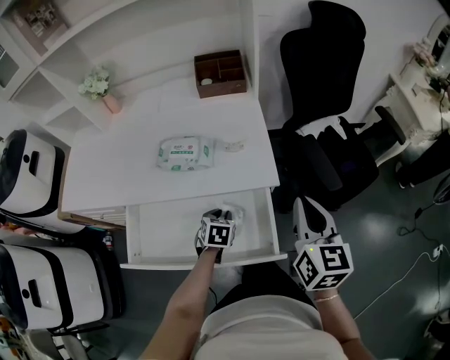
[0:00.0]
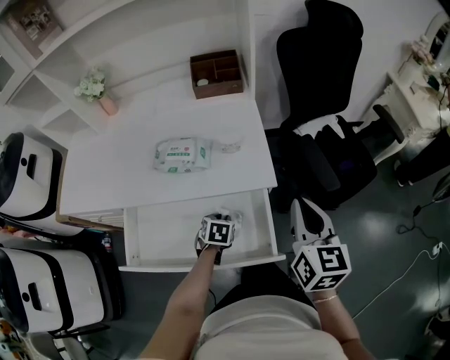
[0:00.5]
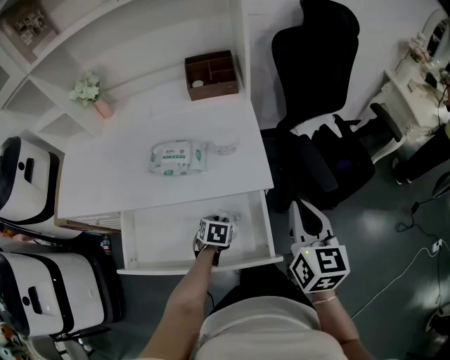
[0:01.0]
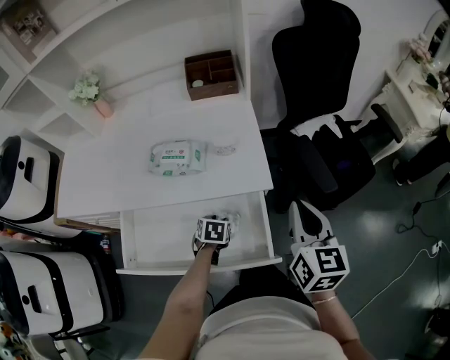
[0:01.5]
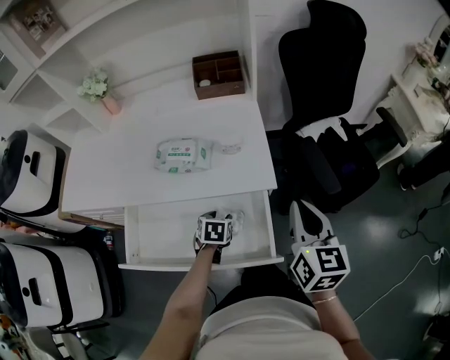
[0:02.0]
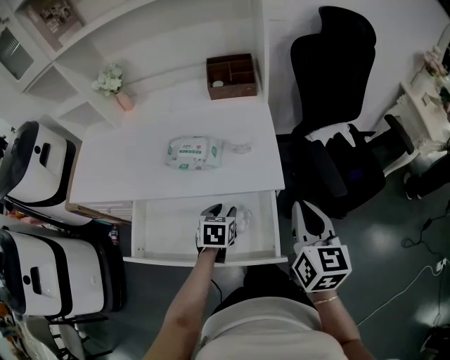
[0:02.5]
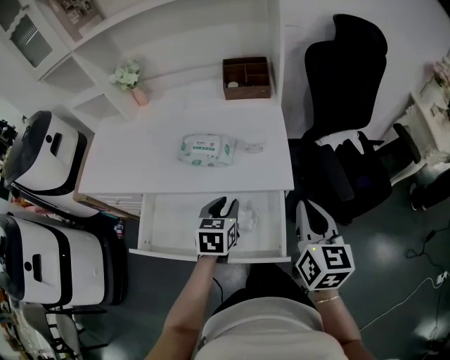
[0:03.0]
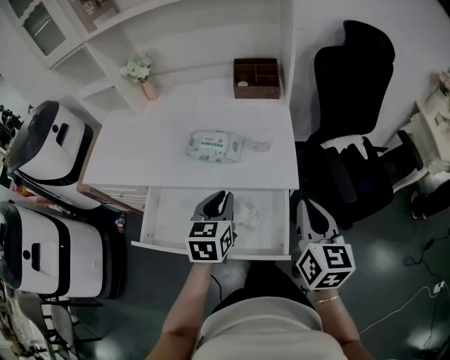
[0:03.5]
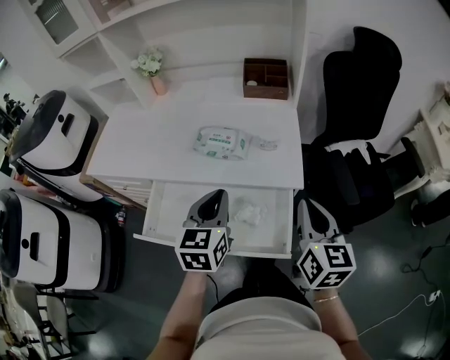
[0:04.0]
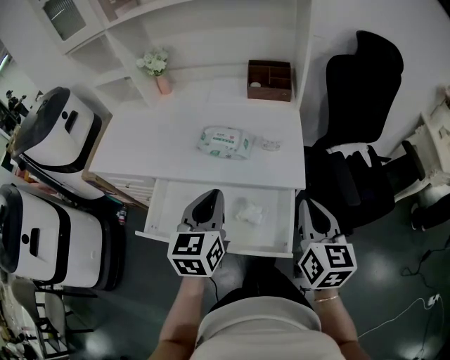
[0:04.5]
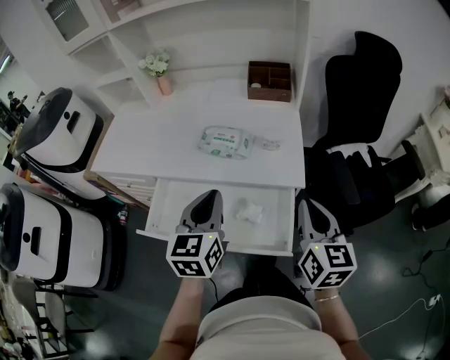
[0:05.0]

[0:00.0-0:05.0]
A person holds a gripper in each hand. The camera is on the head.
0:00.0 to 0:02.5: The left gripper shifts about 5 cm upward.
0:02.5 to 0:05.0: The right gripper changes place by some 5 cm, while the left gripper goes approximately 20 cm upward, tilts its fingers roughly 40 degrees upward, and closes.

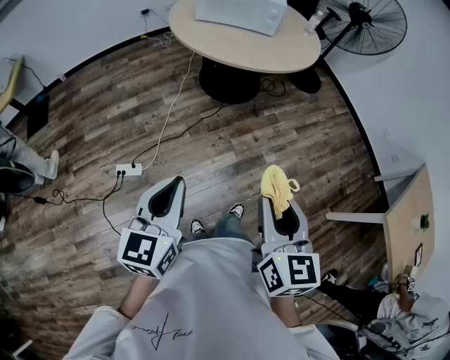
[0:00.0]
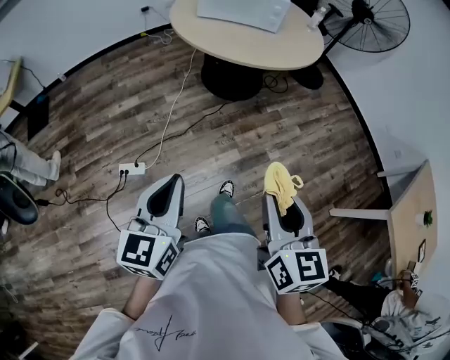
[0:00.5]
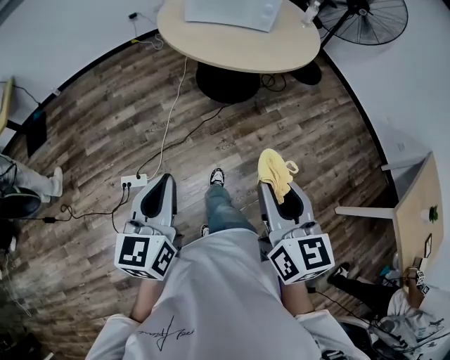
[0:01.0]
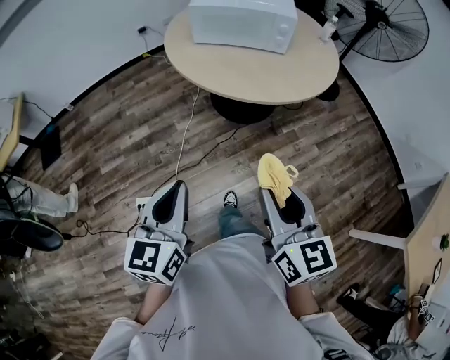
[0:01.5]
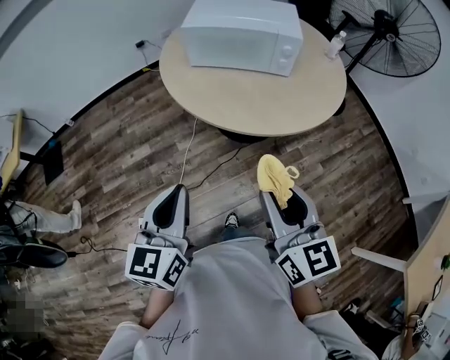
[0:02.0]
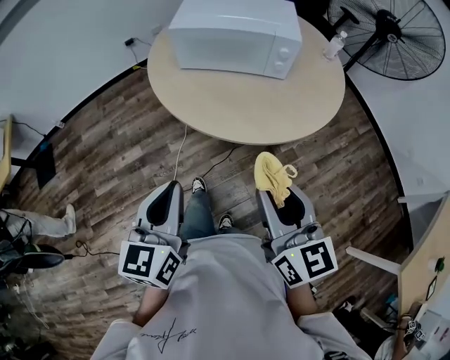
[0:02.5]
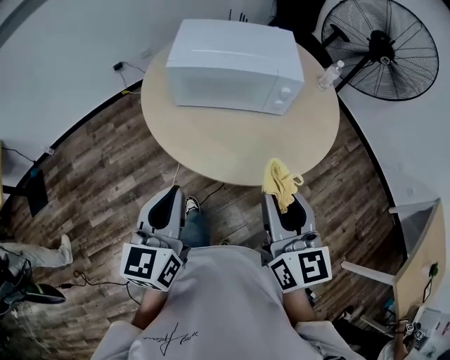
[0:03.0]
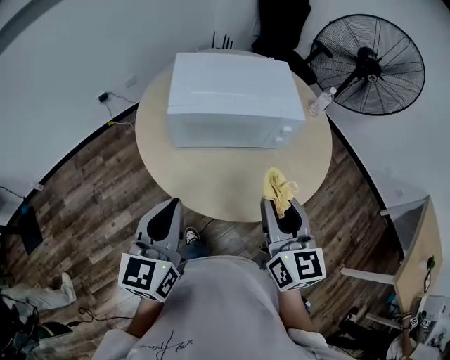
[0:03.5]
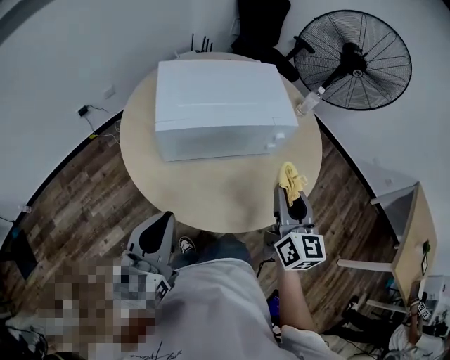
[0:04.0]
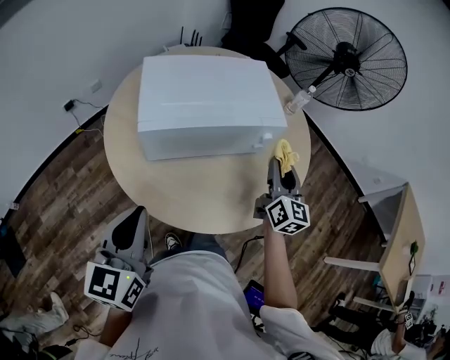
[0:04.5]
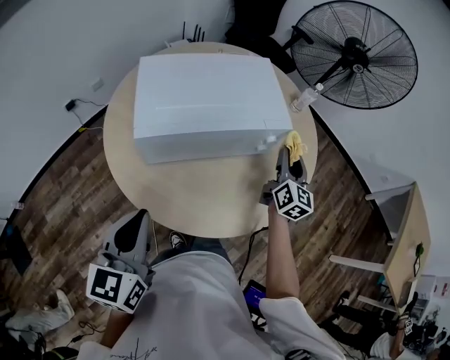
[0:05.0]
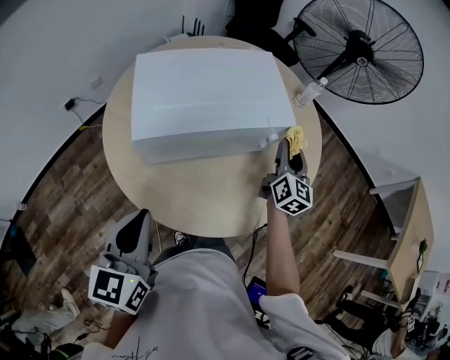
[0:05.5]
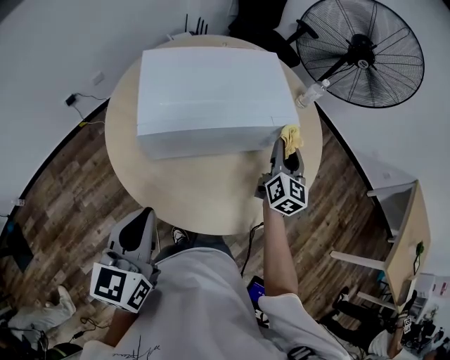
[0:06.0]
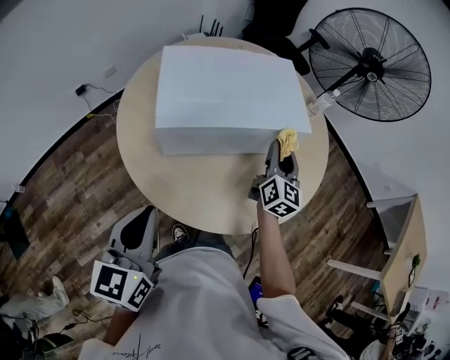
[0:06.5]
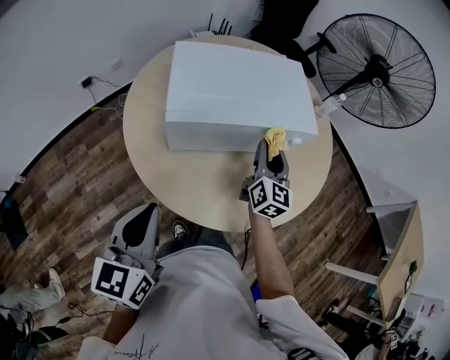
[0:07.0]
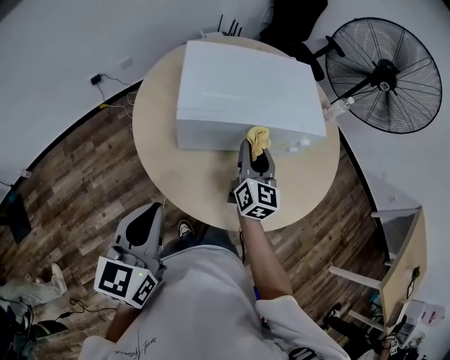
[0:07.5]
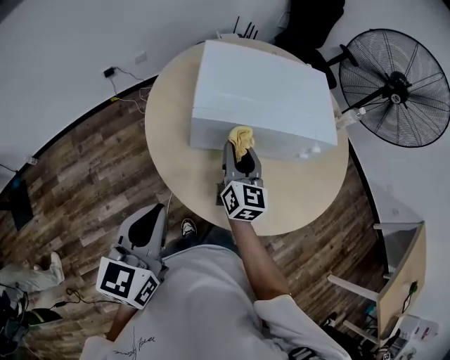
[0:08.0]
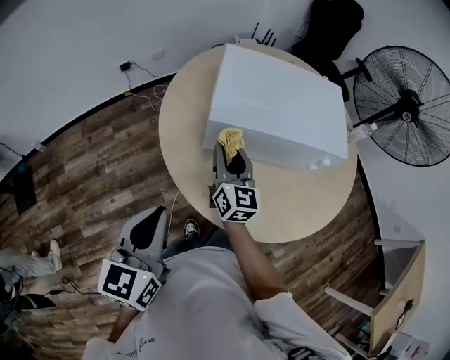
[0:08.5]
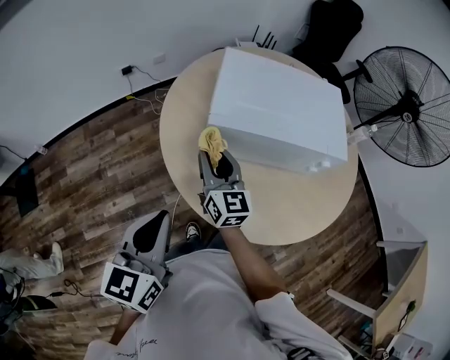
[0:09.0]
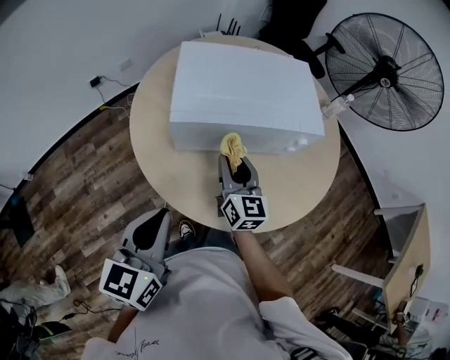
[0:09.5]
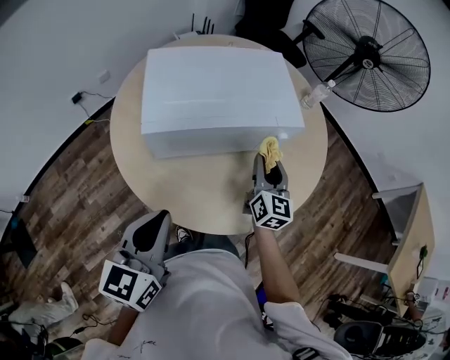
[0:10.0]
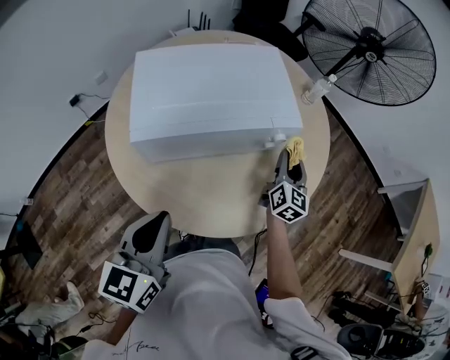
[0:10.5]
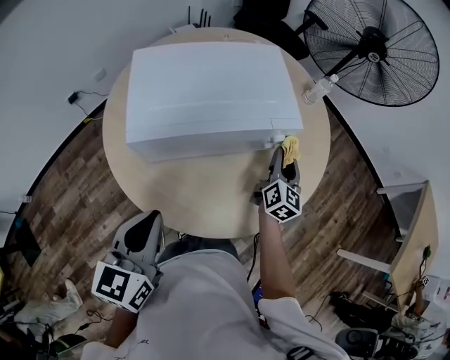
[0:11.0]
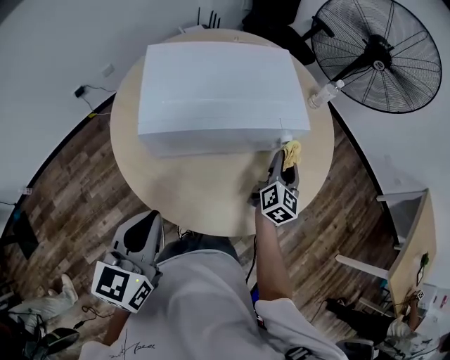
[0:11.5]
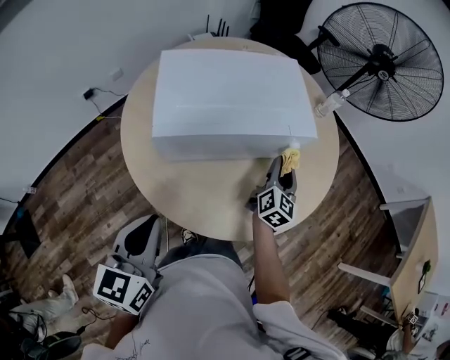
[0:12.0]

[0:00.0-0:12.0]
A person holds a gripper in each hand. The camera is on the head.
0:00.0 to 0:02.0: The grippers both shift forward by some 40 cm.
0:02.0 to 0:04.0: The left gripper ends up about 40 cm from where it was, and swivels approximately 20 degrees, while the right gripper shifts by about 35 cm, and changes its angle by roughly 30 degrees.
0:04.0 to 0:06.0: The left gripper moves forward, roughly 5 cm. Meanwhile the right gripper shifts some 20 cm forward and downward.
0:06.0 to 0:08.0: The left gripper goes approximately 10 cm backward and to the left. Meanwhile the right gripper is displaced to the left by some 25 cm, and swivels approximately 30 degrees.
0:08.0 to 0:10.0: The right gripper ends up approximately 20 cm from where it was; the left gripper shifts by roughly 10 cm.

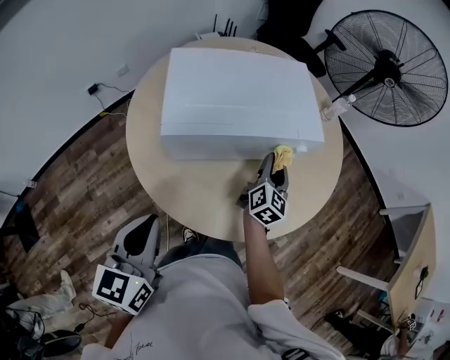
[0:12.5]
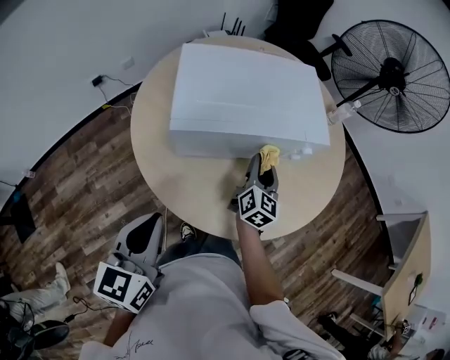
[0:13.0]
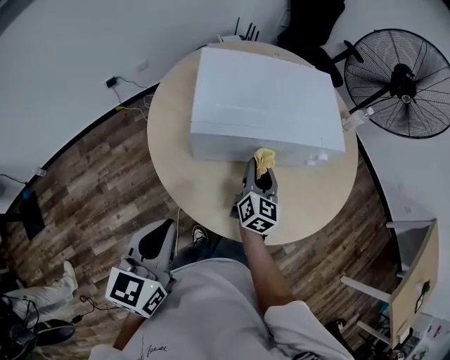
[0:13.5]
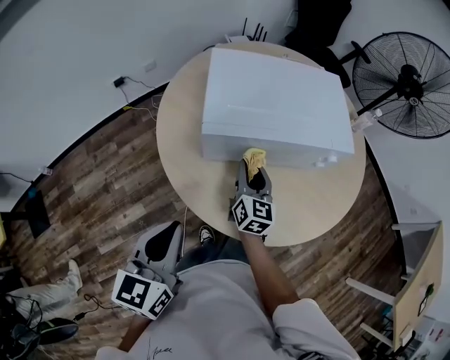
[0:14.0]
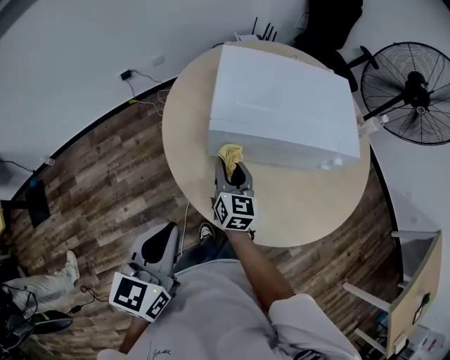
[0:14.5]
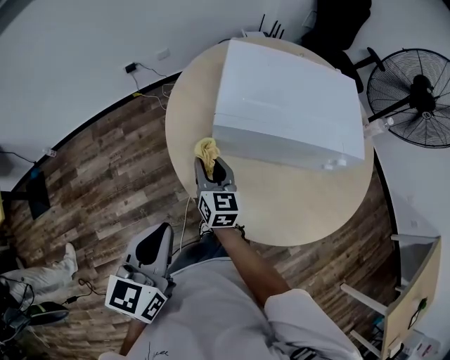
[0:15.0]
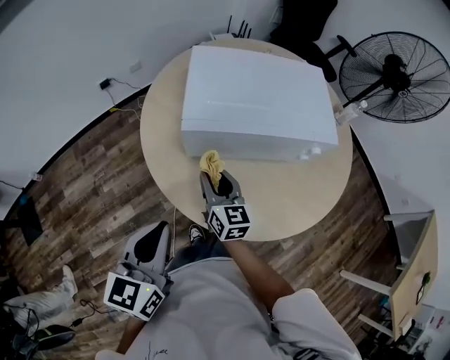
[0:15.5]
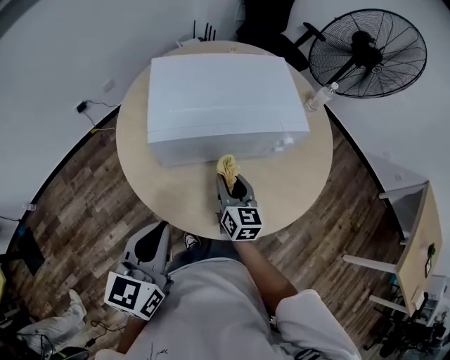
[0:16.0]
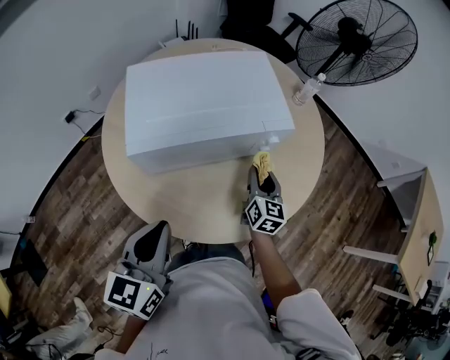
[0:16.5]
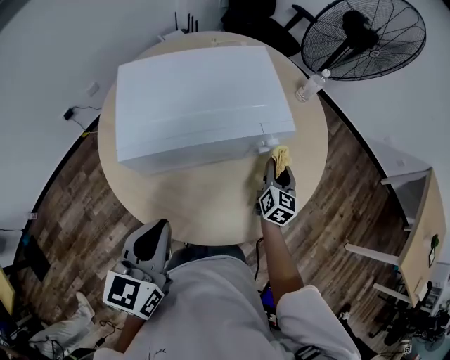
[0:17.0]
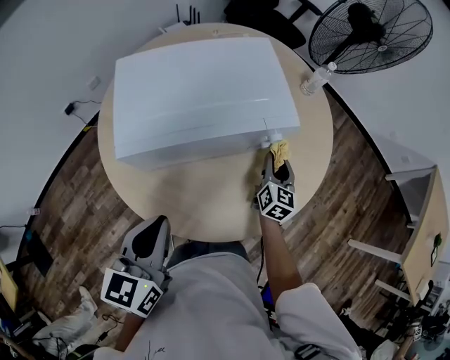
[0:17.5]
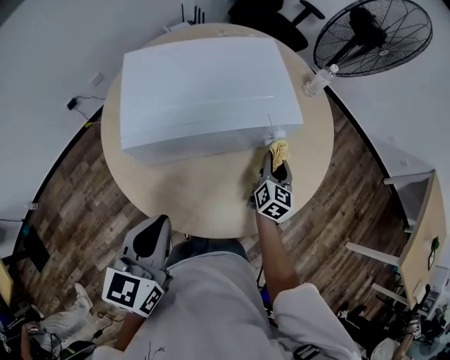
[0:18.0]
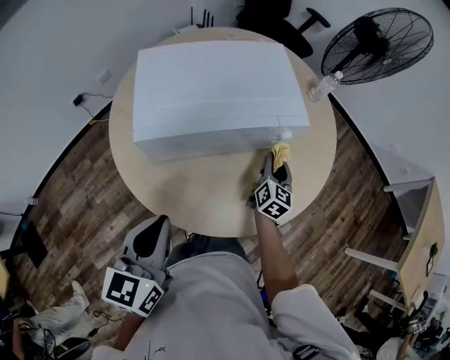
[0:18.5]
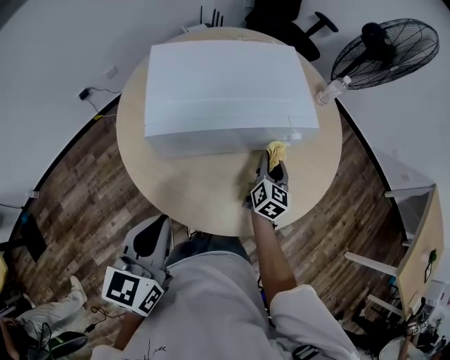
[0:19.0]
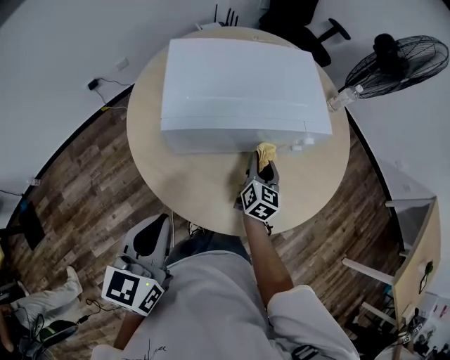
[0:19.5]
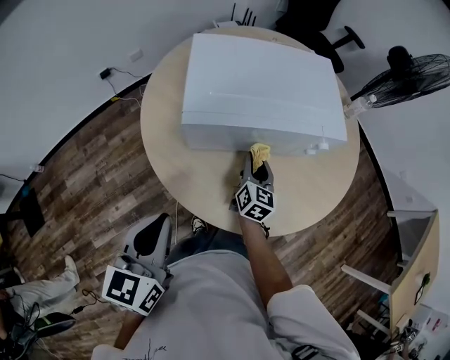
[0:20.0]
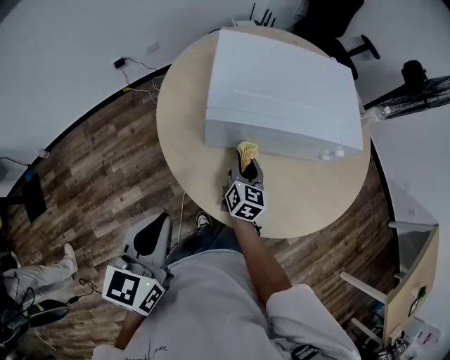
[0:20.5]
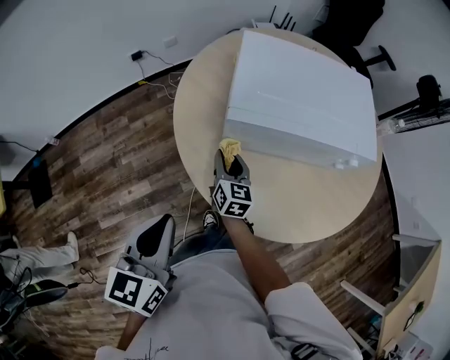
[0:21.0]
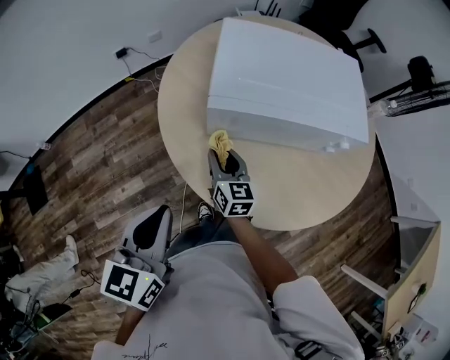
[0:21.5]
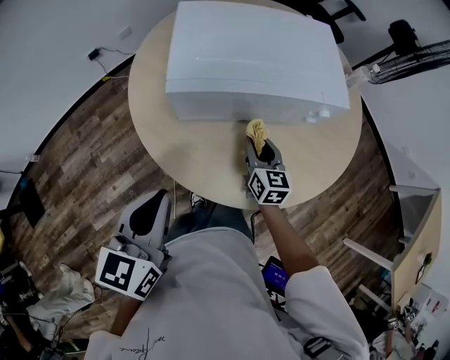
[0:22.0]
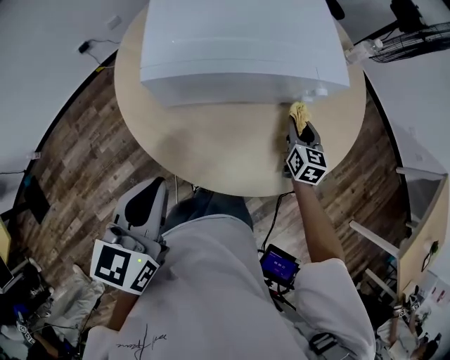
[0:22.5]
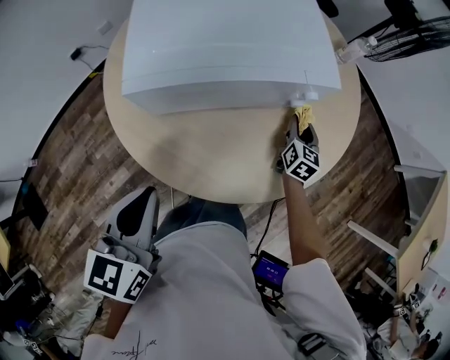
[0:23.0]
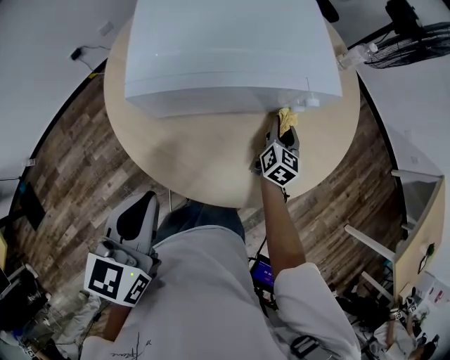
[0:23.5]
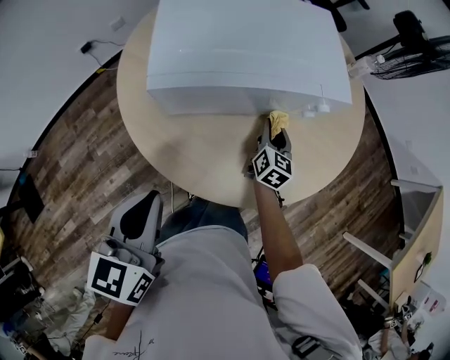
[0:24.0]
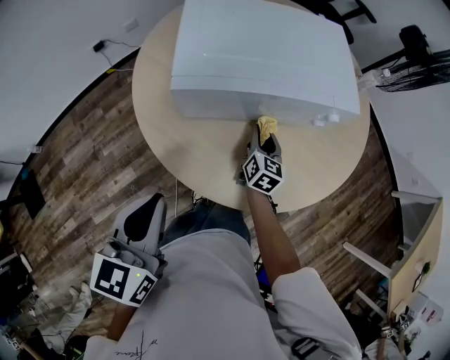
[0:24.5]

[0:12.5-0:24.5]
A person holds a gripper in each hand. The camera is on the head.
0:12.5 to 0:14.5: The right gripper moves to the left, about 25 cm, and rotates roughly 40 degrees, while the left gripper ends up about 5 cm from where it was.
0:14.5 to 0:16.5: The right gripper changes place by about 30 cm, and turns by approximately 30 degrees, while the left gripper ends up roughly 15 cm from where it was.
0:18.5 to 0:20.5: The left gripper shifts some 15 cm to the left and backward. The right gripper is displaced to the left by approximately 25 cm, and swivels approximately 20 degrees.
0:20.5 to 0:22.5: The right gripper is displaced to the right by roughly 25 cm; the left gripper goes approximately 10 cm to the right.
0:22.5 to 0:24.5: The right gripper shifts roughly 15 cm to the left.
